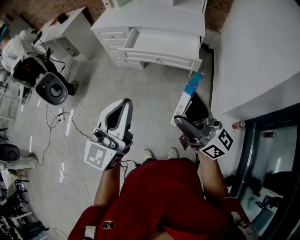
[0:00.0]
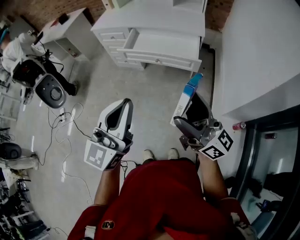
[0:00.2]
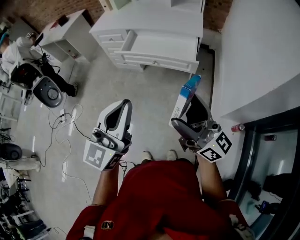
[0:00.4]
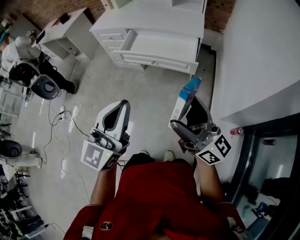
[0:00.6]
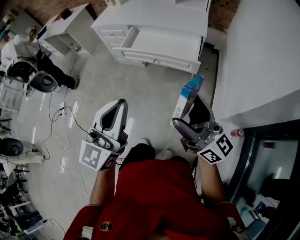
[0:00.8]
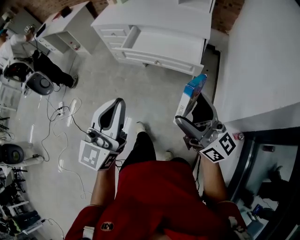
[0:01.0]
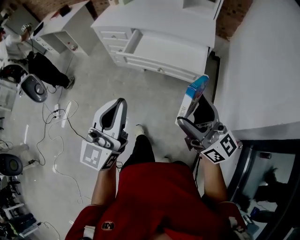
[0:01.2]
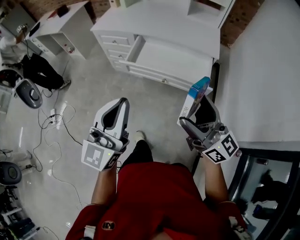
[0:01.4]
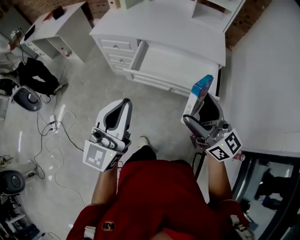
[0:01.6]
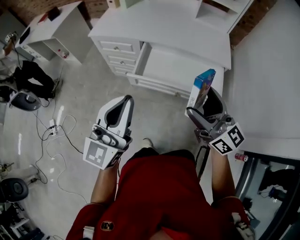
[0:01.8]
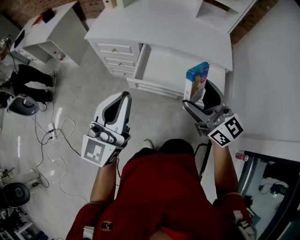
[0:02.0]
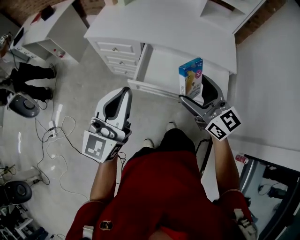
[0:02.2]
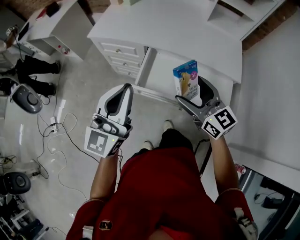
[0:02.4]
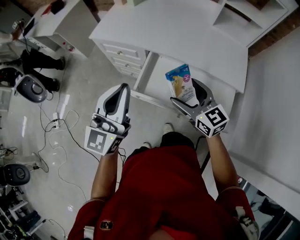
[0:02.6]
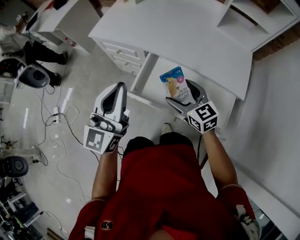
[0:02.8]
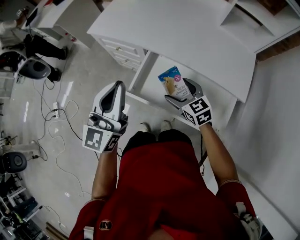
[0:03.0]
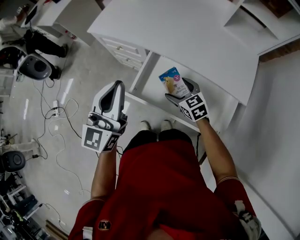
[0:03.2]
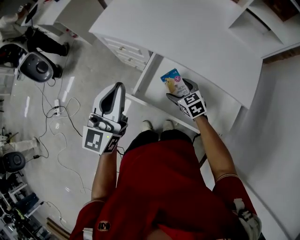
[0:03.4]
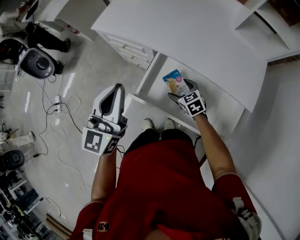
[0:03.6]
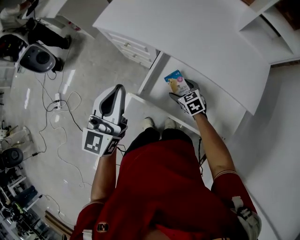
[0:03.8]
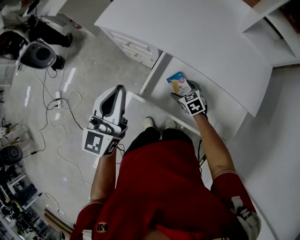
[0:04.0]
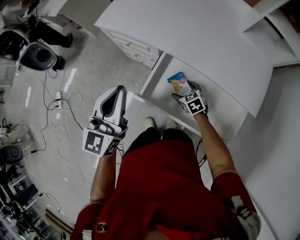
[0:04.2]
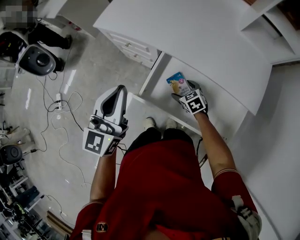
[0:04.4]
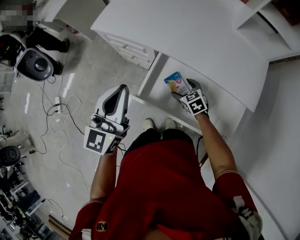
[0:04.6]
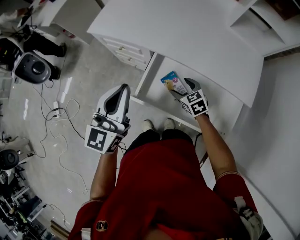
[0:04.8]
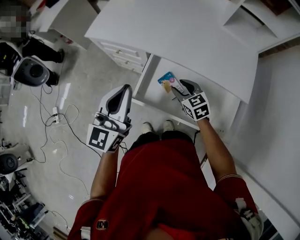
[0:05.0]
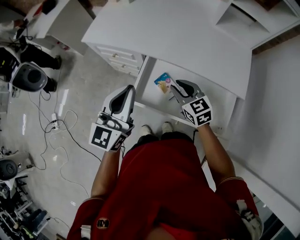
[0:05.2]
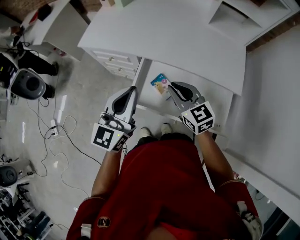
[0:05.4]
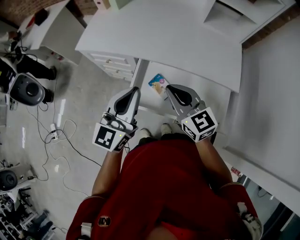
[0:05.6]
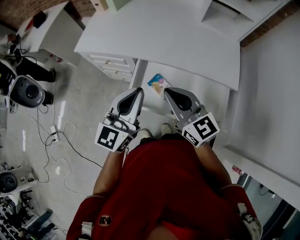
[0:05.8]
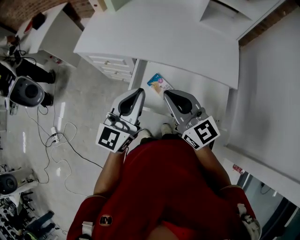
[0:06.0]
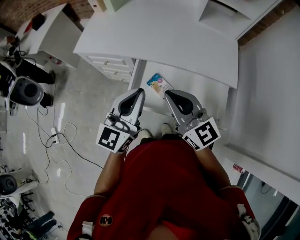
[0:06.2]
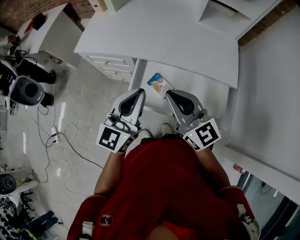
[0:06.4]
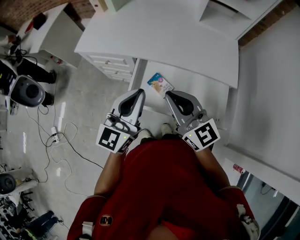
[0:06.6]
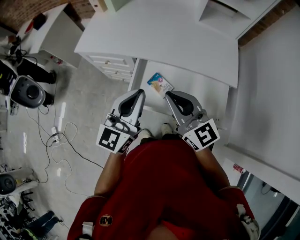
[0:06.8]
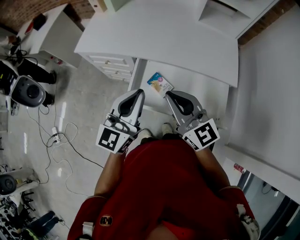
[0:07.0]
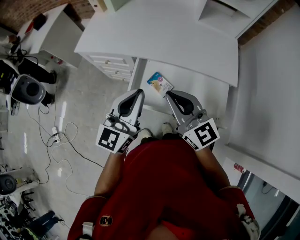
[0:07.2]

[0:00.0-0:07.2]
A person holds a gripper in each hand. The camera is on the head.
0:00.0 to 0:01.4: Both grippers move forward, about 20 cm.
0:01.4 to 0:02.8: The left gripper shifts about 35 cm forward; the right gripper travels forward and downward by about 50 cm, and points its fingers roughly 40 degrees further downward.
0:02.8 to 0:04.4: The right gripper goes some 20 cm downward, and tips its fingers downward by approximately 30 degrees. The left gripper goes about 5 cm forward.
0:04.4 to 0:05.8: The left gripper travels to the right by approximately 10 cm, and changes its angle by some 20 degrees. The right gripper heads upward, covering about 30 cm, angles its fingers upward, by some 50 degrees, and closes its fingers.
0:05.8 to 0:07.2: The grippers move only a little.

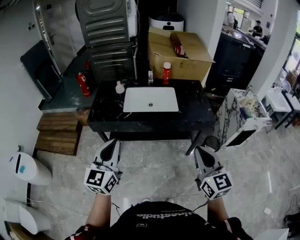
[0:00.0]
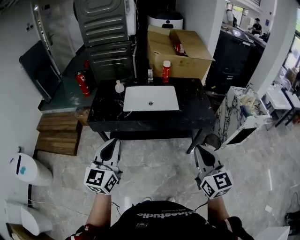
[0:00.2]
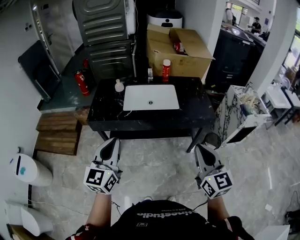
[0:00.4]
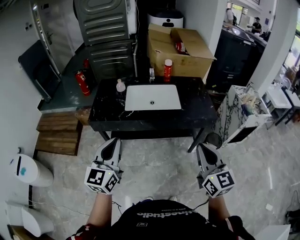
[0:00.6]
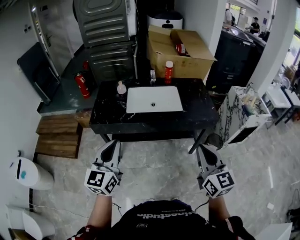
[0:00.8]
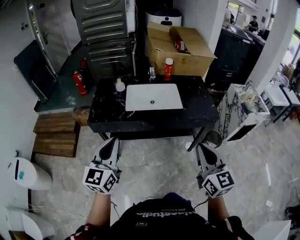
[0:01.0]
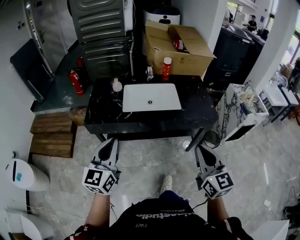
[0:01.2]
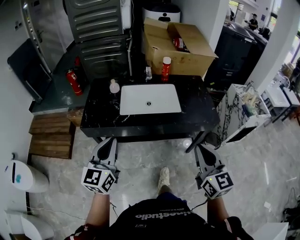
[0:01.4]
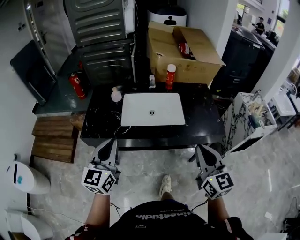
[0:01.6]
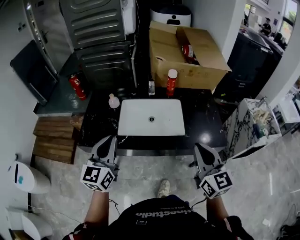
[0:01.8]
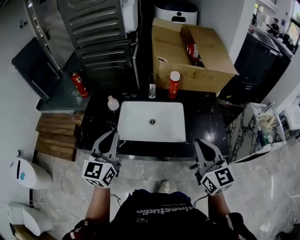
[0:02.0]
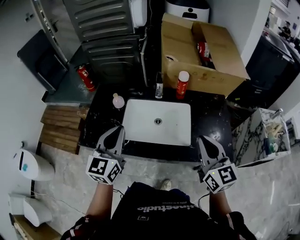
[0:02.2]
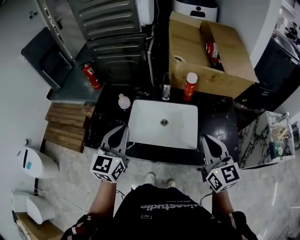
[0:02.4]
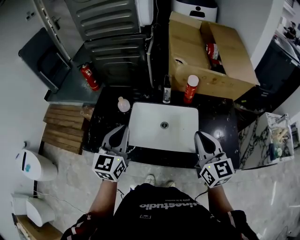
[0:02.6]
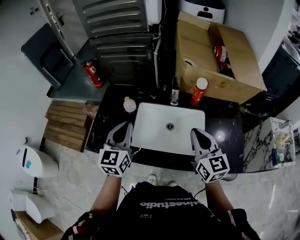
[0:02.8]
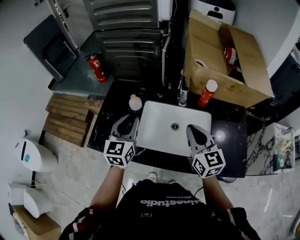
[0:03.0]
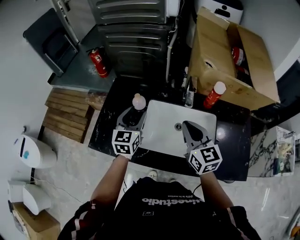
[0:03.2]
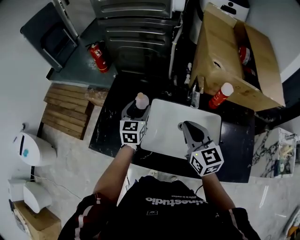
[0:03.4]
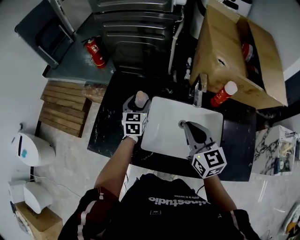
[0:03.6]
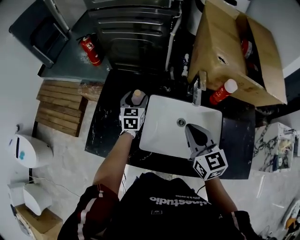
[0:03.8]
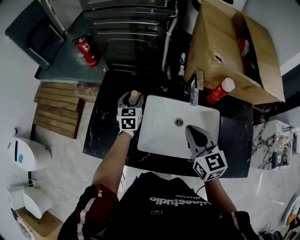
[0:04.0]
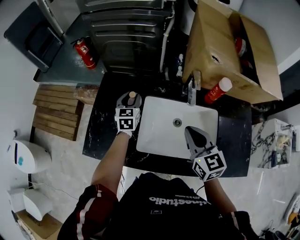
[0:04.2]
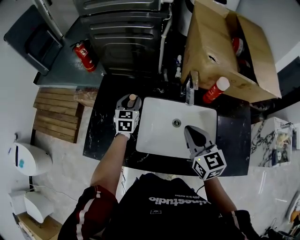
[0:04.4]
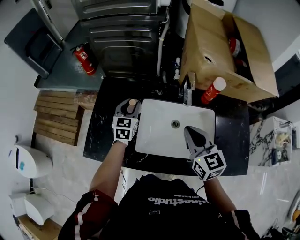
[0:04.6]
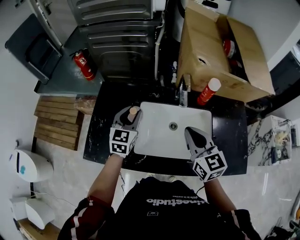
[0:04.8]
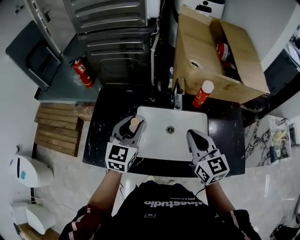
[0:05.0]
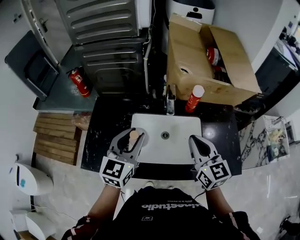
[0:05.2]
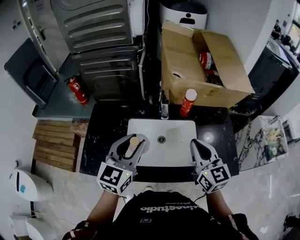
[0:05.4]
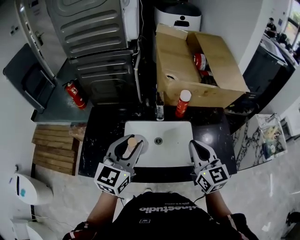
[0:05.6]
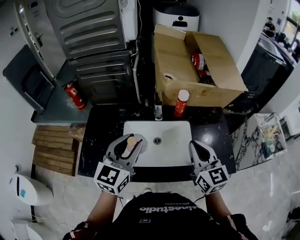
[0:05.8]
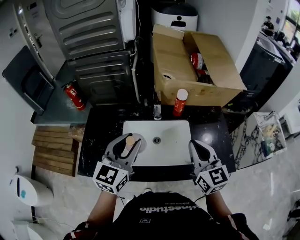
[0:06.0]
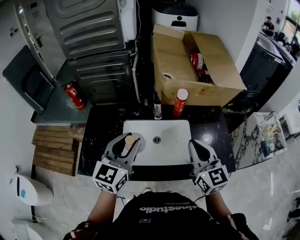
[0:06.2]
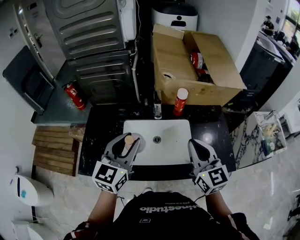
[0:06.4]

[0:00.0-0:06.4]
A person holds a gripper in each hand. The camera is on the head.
0:00.0 to 0:01.6: Both grippers move forward, roughly 20 cm.
0:01.6 to 0:03.2: Both grippers move forward, about 40 cm. The left gripper opens. Meanwhile the right gripper rotates some 20 degrees.
0:03.2 to 0:04.8: The left gripper reaches about 15 cm forward, then returns.
0:04.8 to 0:06.4: The left gripper travels upward, backward and to the right by roughly 25 cm. Meanwhile the right gripper is displaced to the right, upward and backward by approximately 15 cm.

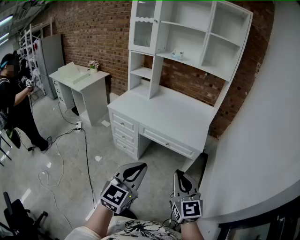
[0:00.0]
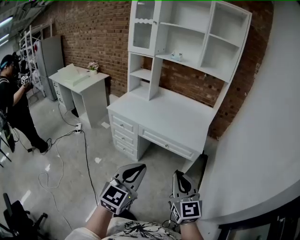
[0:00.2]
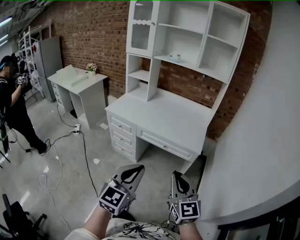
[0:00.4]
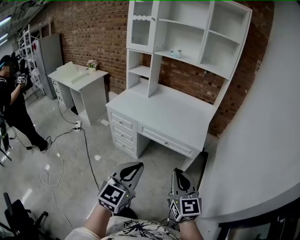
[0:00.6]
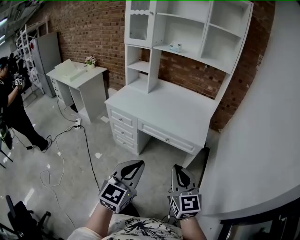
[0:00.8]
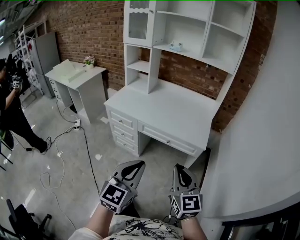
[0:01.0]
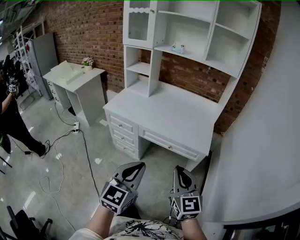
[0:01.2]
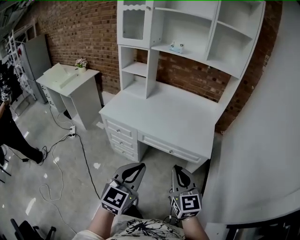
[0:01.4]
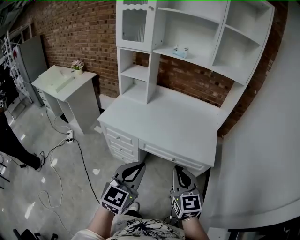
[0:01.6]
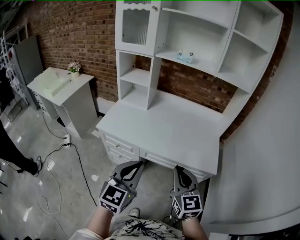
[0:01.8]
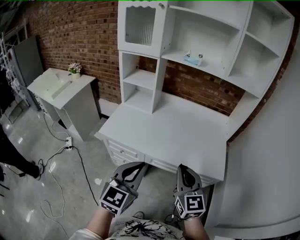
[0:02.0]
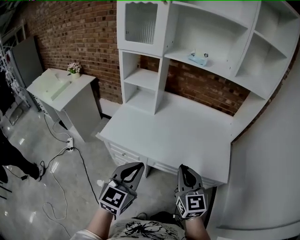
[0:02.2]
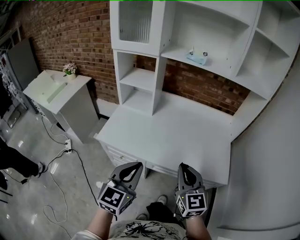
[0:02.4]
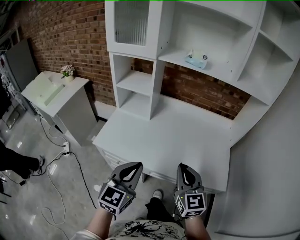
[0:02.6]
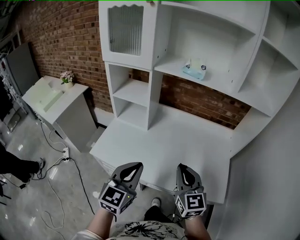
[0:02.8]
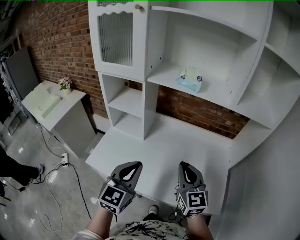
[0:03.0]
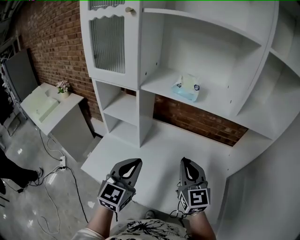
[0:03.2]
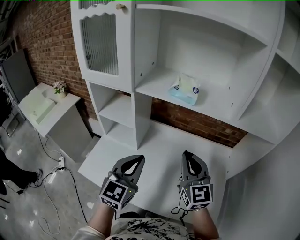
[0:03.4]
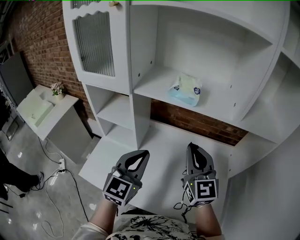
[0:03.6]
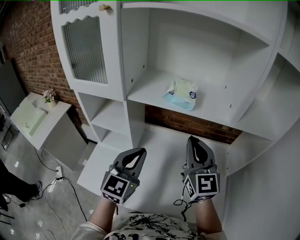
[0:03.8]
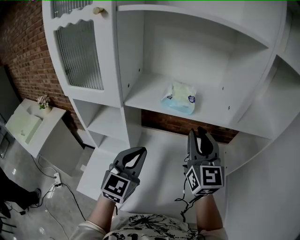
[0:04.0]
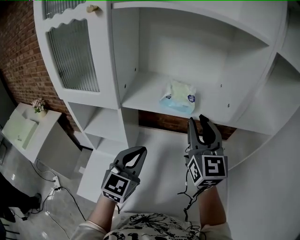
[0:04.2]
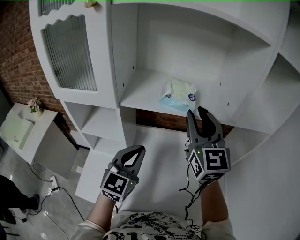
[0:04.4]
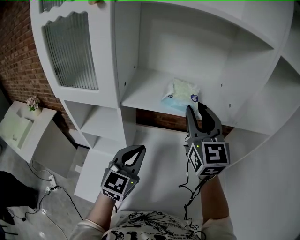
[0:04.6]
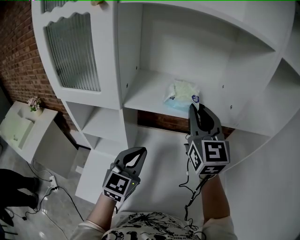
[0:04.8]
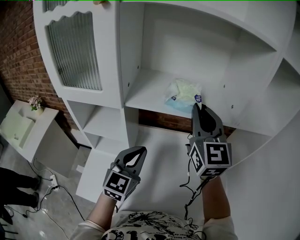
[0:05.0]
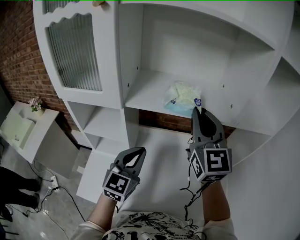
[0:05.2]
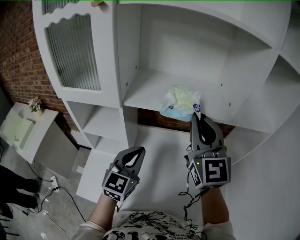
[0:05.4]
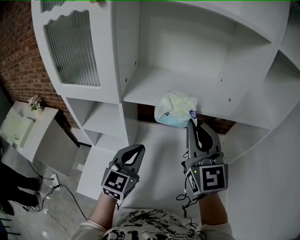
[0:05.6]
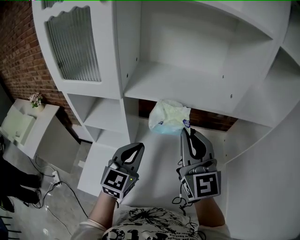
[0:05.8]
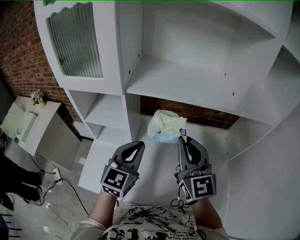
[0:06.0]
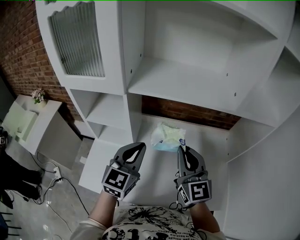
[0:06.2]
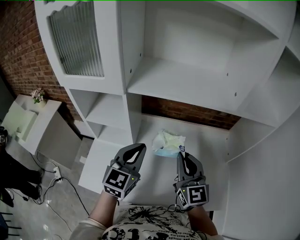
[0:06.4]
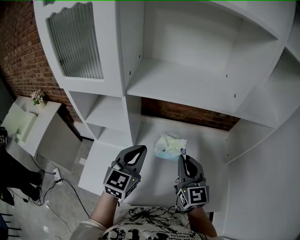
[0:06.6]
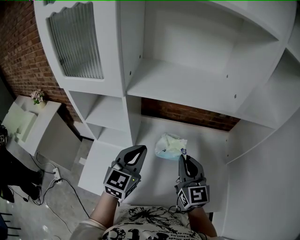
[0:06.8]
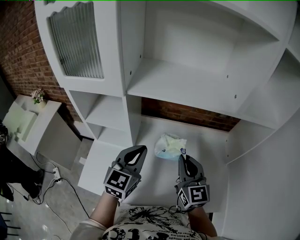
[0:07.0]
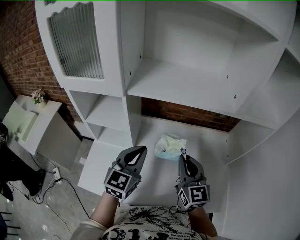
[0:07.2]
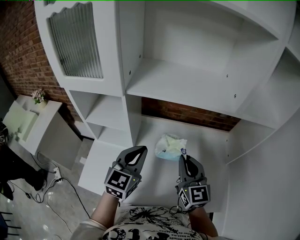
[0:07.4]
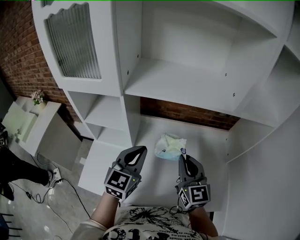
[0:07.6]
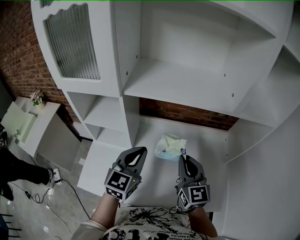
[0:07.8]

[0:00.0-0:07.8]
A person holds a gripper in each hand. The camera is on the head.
0:00.0 to 0:01.6: The grippers both shift forward and to the left by approximately 25 cm.
0:01.6 to 0:03.2: The two grippers travel together, forward, some 40 cm.
0:03.2 to 0:04.6: The left gripper shifts approximately 15 cm forward. Meanwhile the right gripper goes some 25 cm forward and upward, and opens.
0:04.6 to 0:06.2: The right gripper moves downward and backward, some 20 cm, and closes up.
0:06.2 to 0:07.8: The right gripper goes roughly 5 cm downward.

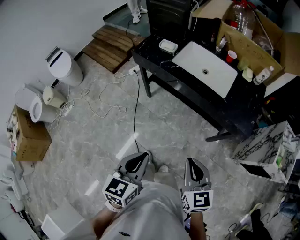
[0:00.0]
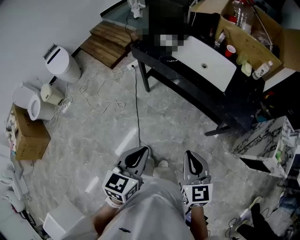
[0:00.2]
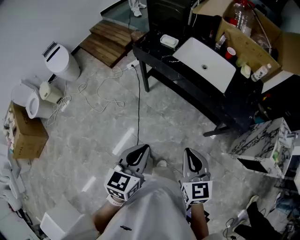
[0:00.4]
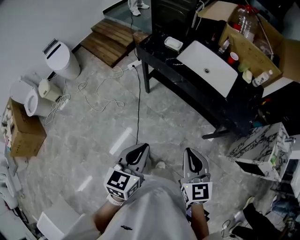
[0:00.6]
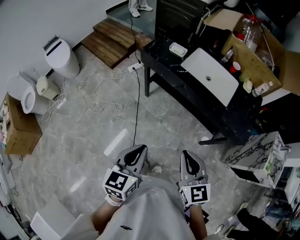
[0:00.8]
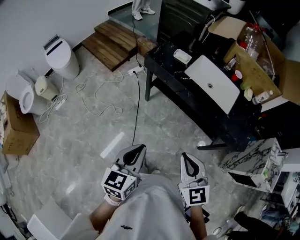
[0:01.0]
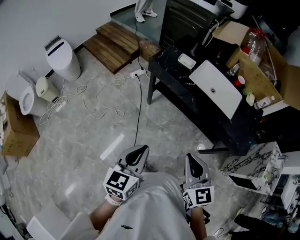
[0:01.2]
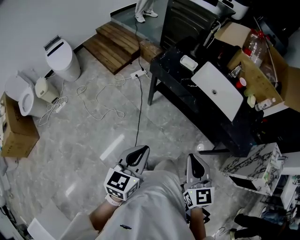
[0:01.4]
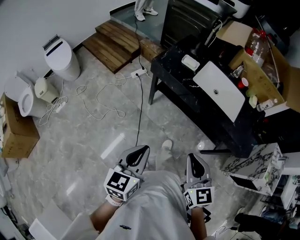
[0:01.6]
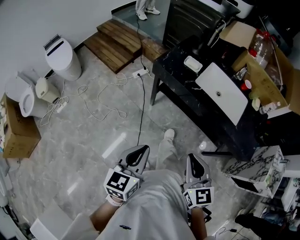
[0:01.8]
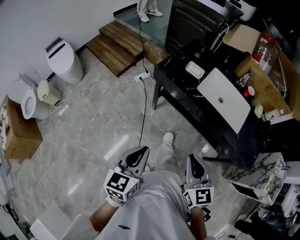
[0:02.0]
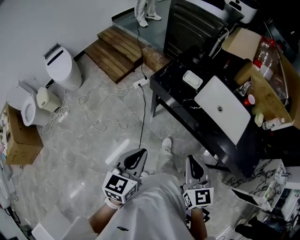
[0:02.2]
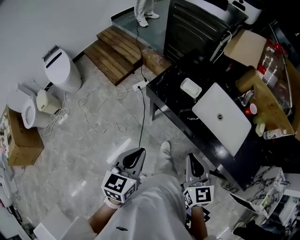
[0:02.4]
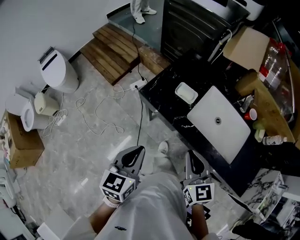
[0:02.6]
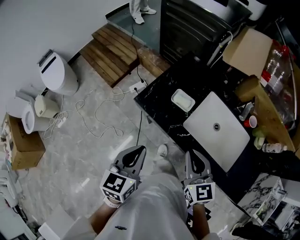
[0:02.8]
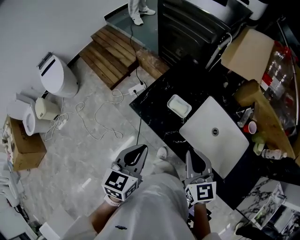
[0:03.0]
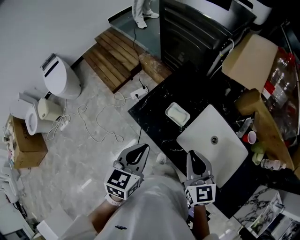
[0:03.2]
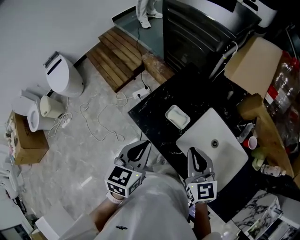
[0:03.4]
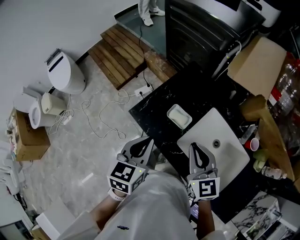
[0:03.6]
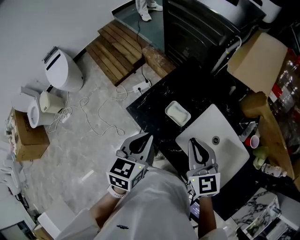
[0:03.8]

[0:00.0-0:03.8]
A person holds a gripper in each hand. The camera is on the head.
0:00.0 to 0:01.2: Both grippers move to the left and forward, about 20 cm.
0:01.2 to 0:02.6: The grippers both shift forward by roughly 35 cm.
0:02.6 to 0:03.8: The right gripper travels forward by some 20 cm. The left gripper is displaced forward and to the right by roughly 20 cm.
